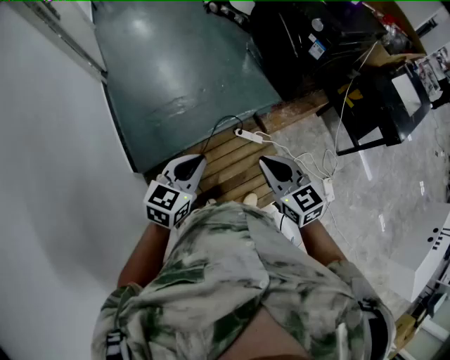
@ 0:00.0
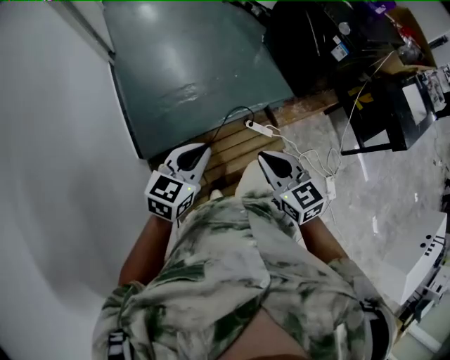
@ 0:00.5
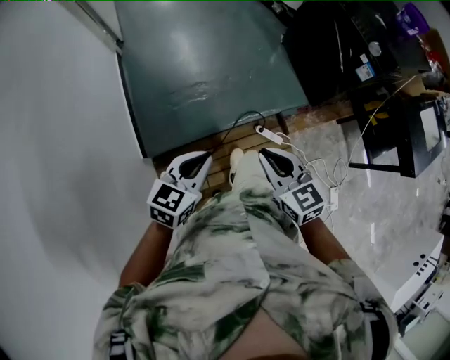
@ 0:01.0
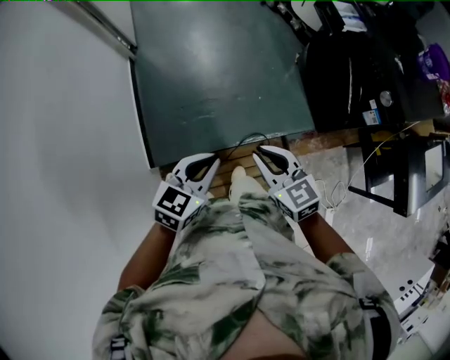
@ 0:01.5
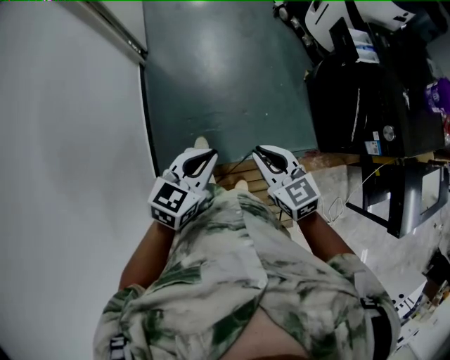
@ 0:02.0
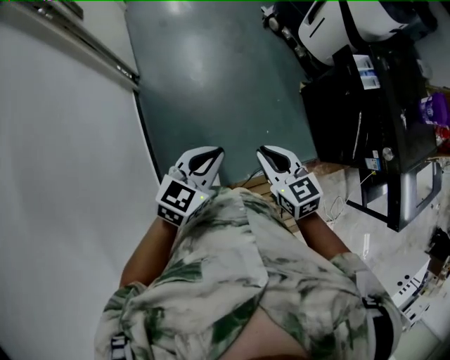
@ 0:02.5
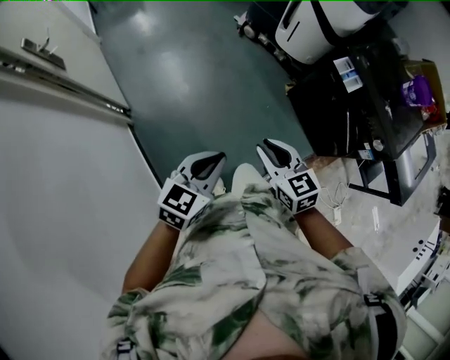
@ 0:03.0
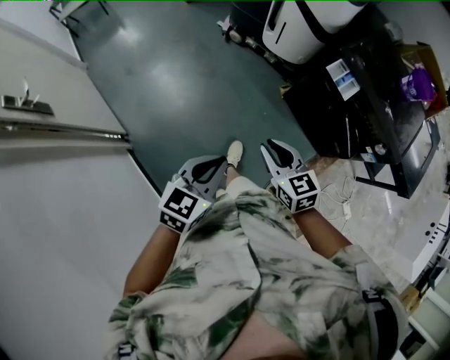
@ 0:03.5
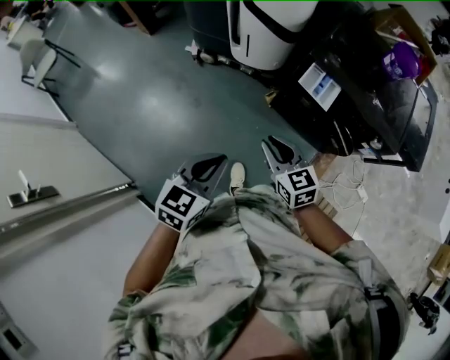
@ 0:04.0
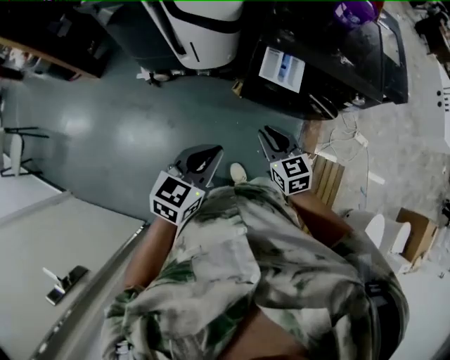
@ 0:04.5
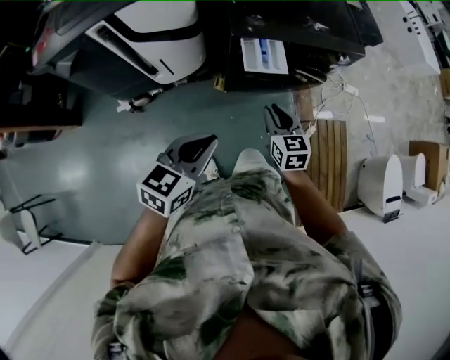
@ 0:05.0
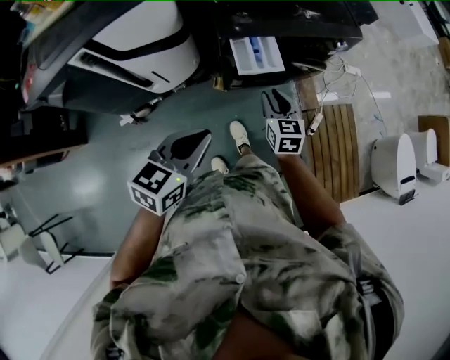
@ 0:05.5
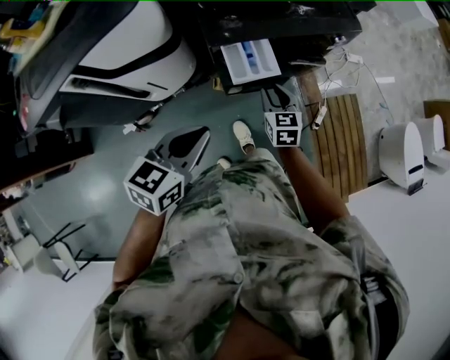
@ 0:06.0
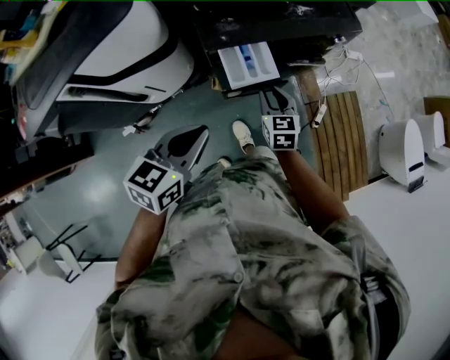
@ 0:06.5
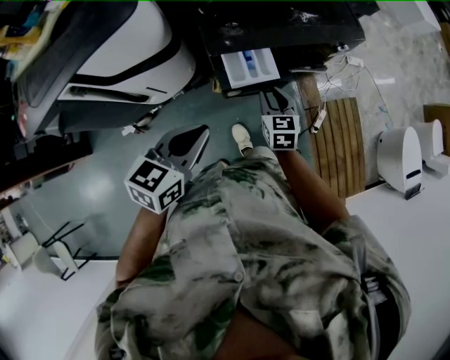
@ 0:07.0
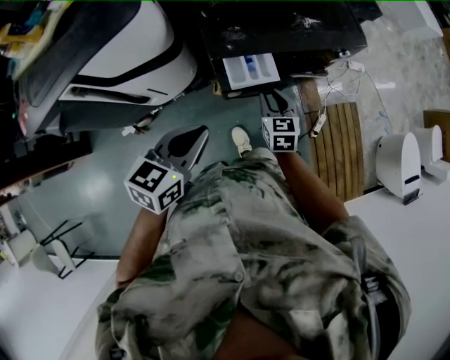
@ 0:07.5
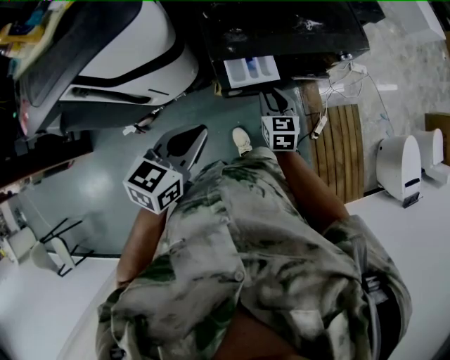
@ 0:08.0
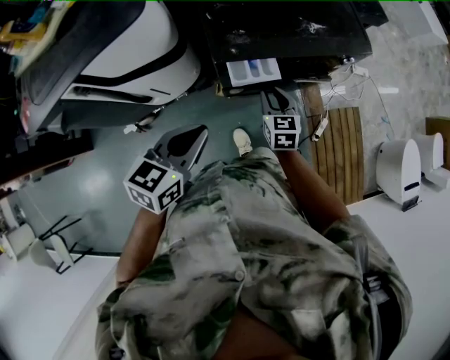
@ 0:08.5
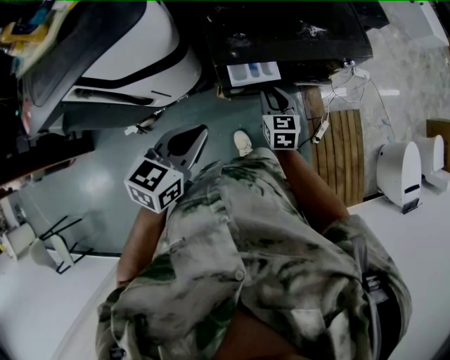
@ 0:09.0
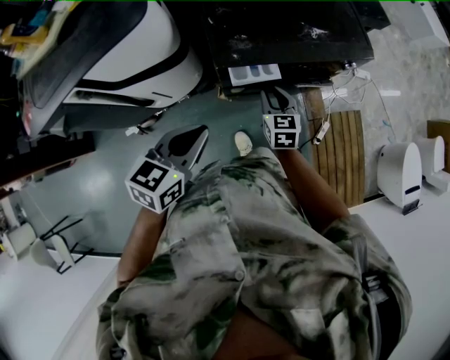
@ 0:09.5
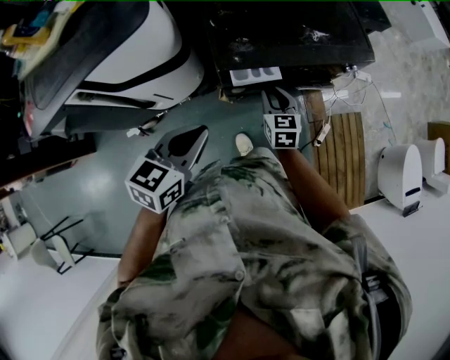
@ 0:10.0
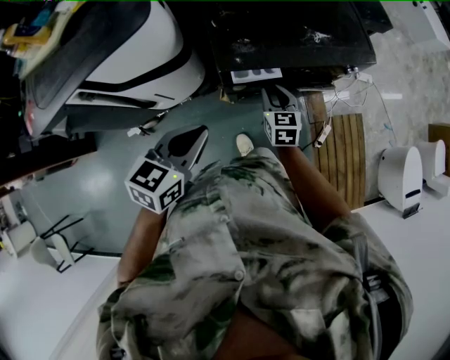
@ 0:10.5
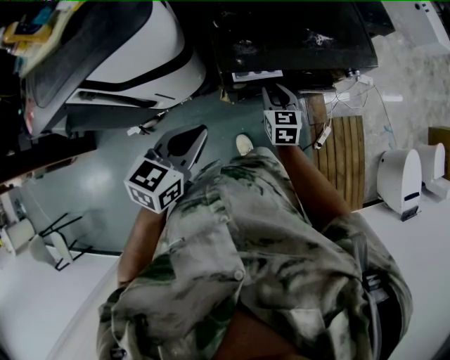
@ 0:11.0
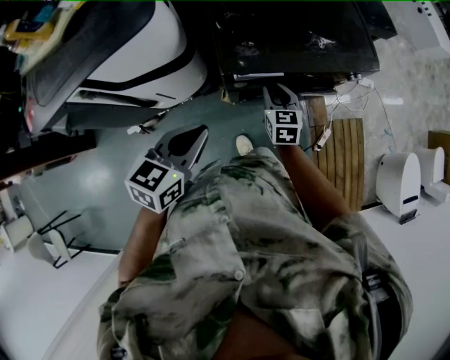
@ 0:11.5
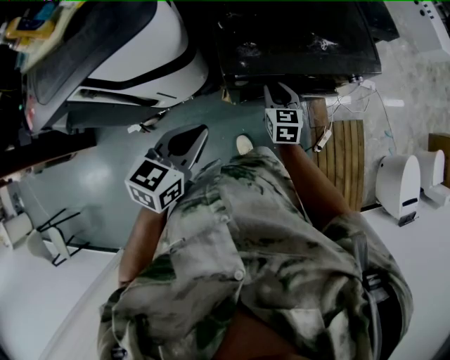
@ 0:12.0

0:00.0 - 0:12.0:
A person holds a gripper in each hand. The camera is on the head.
0:00.0 - 0:02.0: Both grippers are carried forward, about 50 cm.
0:02.0 - 0:04.0: The two grippers travel together, approximately 60 cm. The left gripper rotates some 40 degrees; the right gripper turns by about 50 degrees.
0:04.0 - 0:06.0: The right gripper ends up about 30 cm from where it was, and rotates some 70 degrees. Meanwhile the left gripper moves approximately 30 cm, and swivels roughly 50 degrees.
0:06.0 - 0:08.0: Both grippers travel together forward, about 5 cm.
0:08.0 - 0:10.0: There are only small adjustments of the grippers.
0:10.0 - 0:12.0: The grippers move only a little.

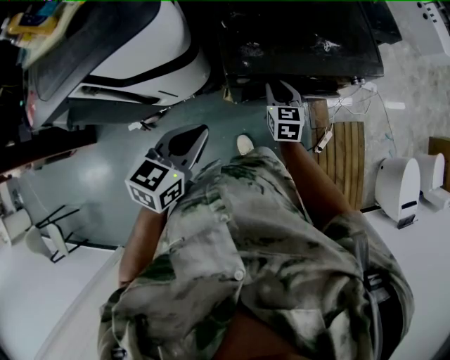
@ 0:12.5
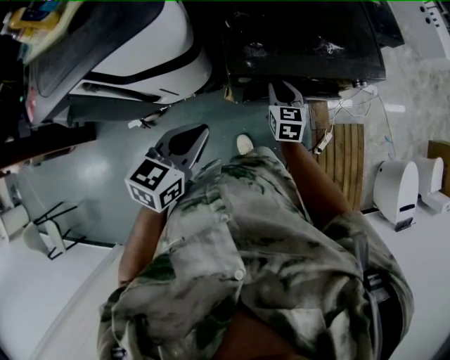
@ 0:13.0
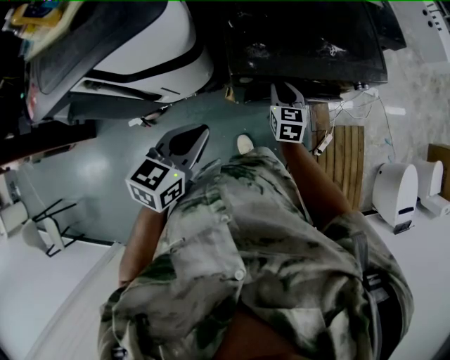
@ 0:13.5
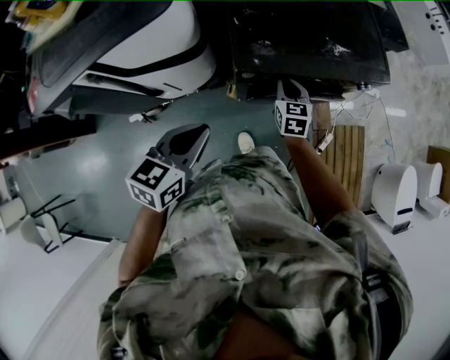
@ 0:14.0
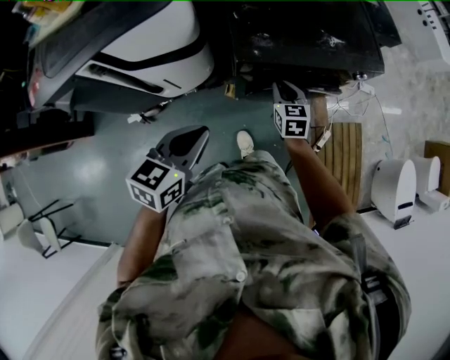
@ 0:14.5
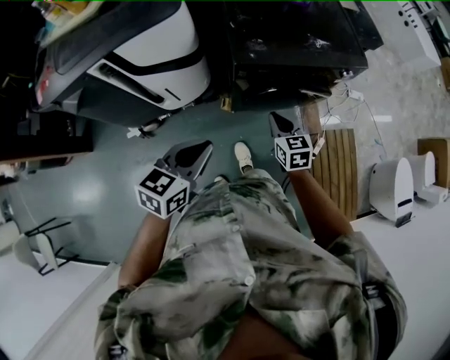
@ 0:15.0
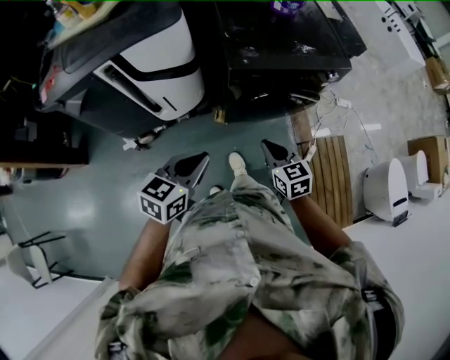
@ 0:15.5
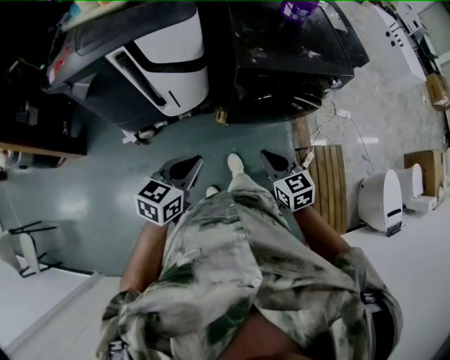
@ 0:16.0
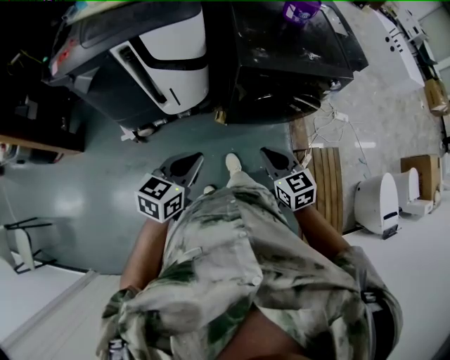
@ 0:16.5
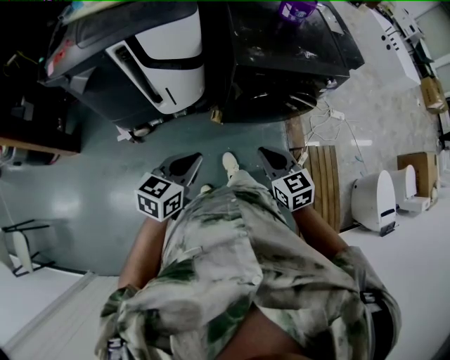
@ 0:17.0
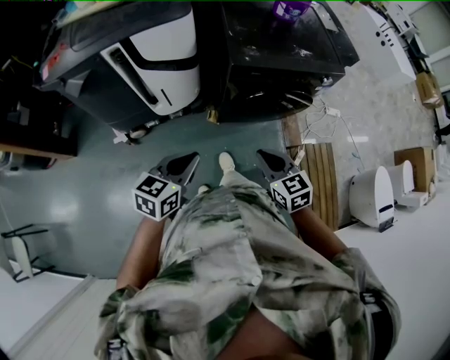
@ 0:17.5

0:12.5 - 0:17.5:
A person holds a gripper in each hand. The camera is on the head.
0:12.5 - 0:15.0: The two grippers go roughly 15 cm backward. The right gripper closes its fingers.
0:15.0 - 0:17.5: The left gripper travels backward by some 10 cm, while the right gripper is displaced backward and upward by roughly 20 cm.

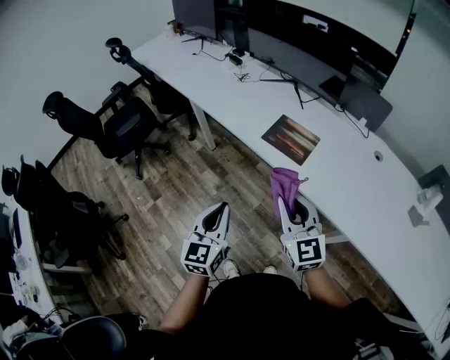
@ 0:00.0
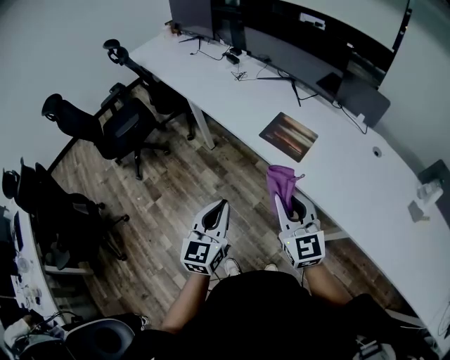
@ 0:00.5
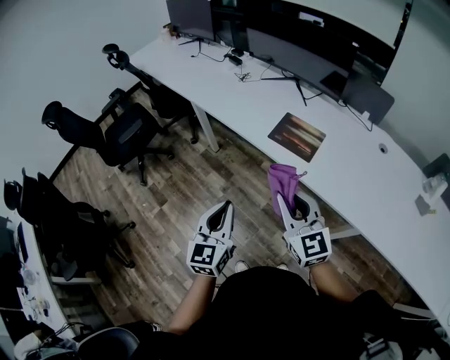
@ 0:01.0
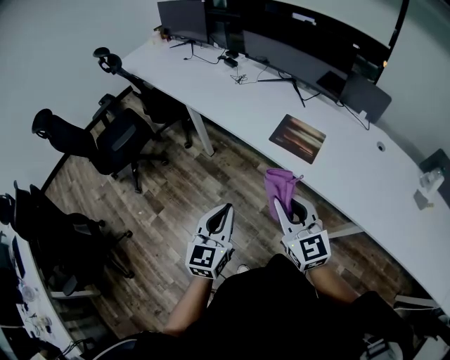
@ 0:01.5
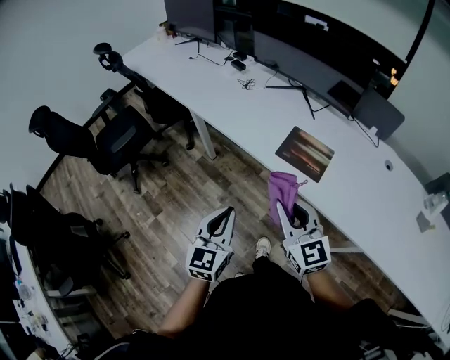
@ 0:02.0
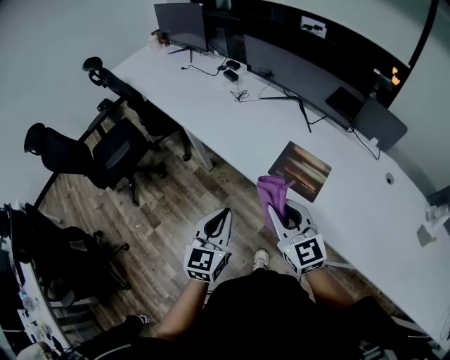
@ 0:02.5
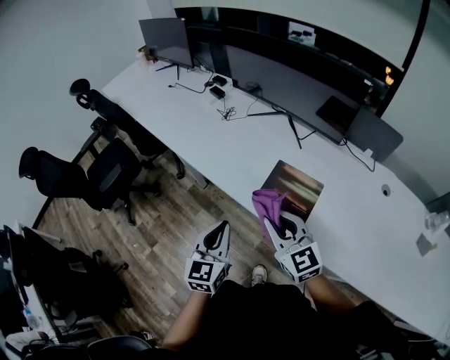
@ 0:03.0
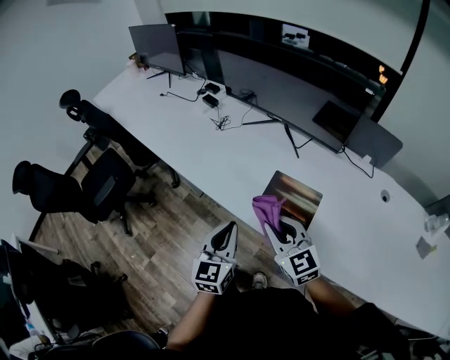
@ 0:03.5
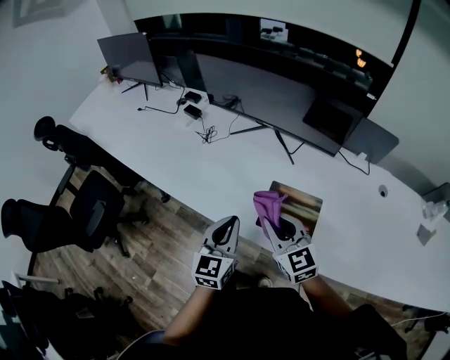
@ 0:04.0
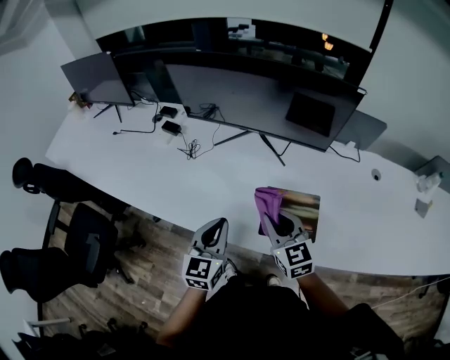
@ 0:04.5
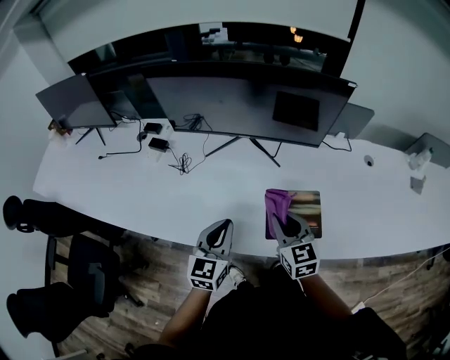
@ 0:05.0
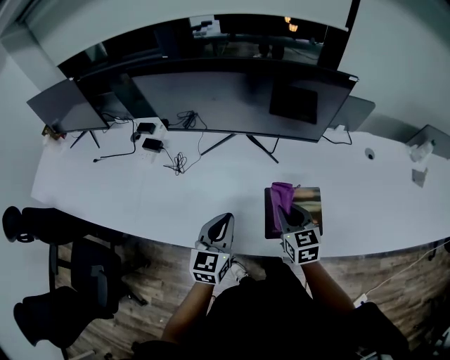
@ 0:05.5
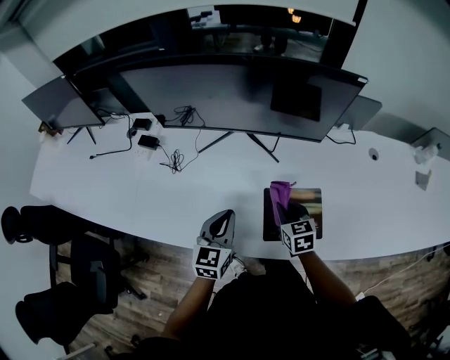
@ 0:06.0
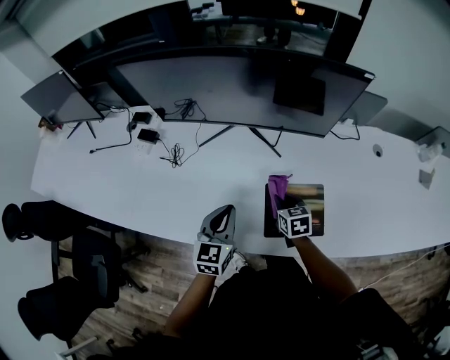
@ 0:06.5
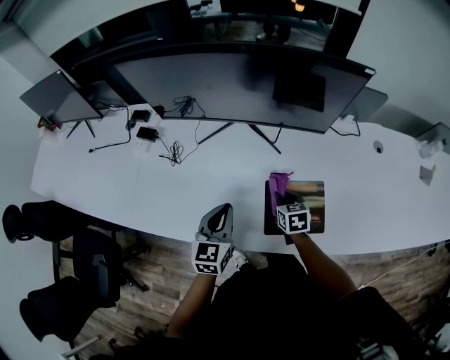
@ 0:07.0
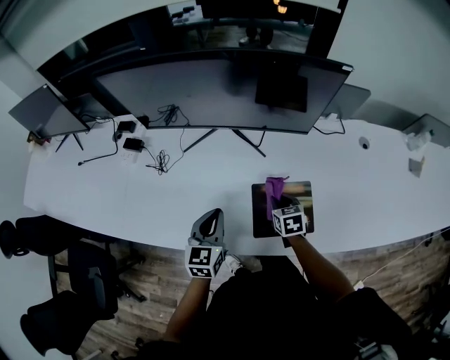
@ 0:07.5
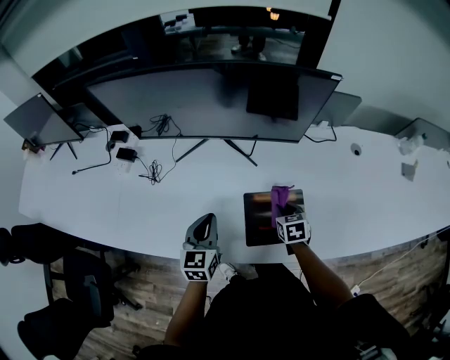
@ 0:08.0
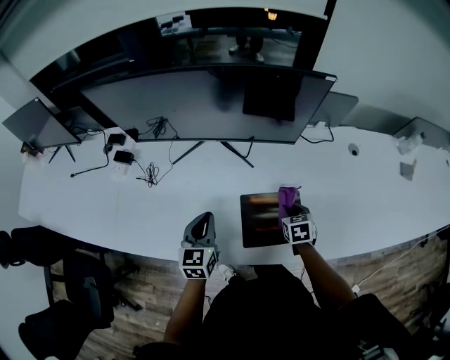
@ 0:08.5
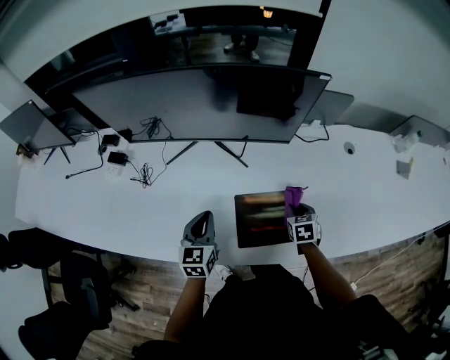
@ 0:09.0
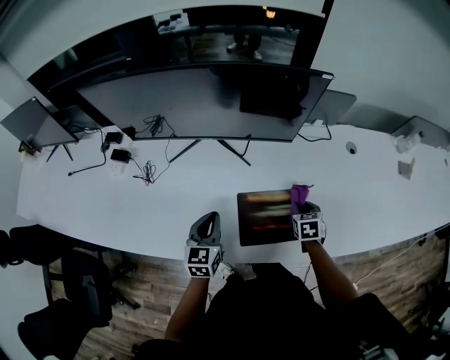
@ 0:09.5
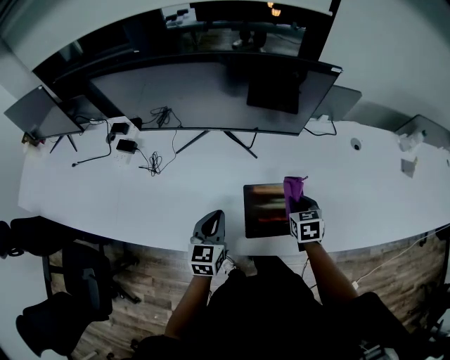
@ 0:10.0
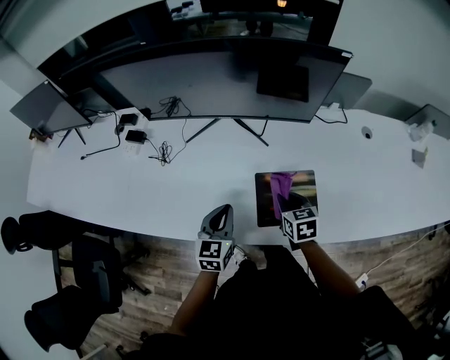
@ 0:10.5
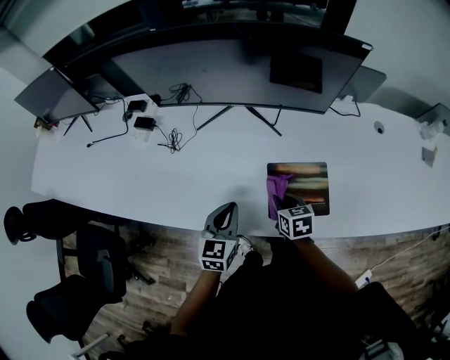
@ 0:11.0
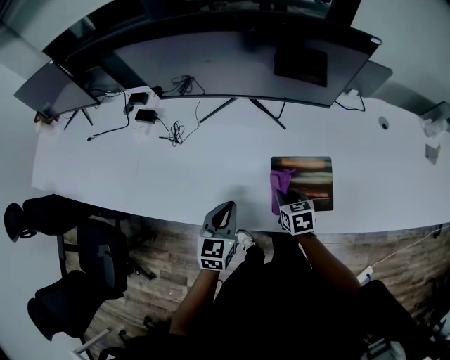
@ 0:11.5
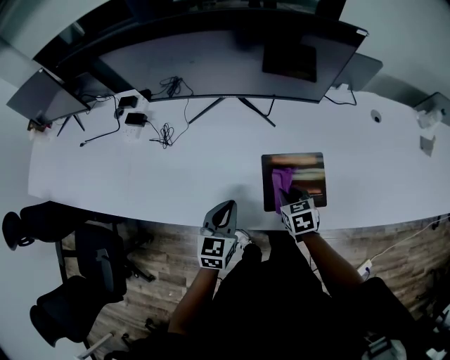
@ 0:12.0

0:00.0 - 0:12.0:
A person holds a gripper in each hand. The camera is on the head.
0:00.0 - 0:02.0: The left gripper is displaced forward and to the left by roughly 10 cm. Meanwhile the right gripper shifts about 10 cm to the left and forward.
0:02.0 - 0:04.0: Both grippers move forward, roughly 25 cm.
0:04.0 - 0:06.0: The right gripper moves downward, approximately 15 cm, and swivels approximately 40 degrees. Meanwhile the left gripper ends up some 15 cm from where it was, and changes its angle by some 20 degrees.
0:06.0 - 0:08.0: The right gripper travels to the right and downward by approximately 10 cm.
0:08.0 - 0:10.0: The right gripper travels upward by some 5 cm.
0:10.0 - 0:12.0: The right gripper moves to the left, backward and downward, roughly 15 cm. The left gripper heads backward, covering approximately 5 cm.
